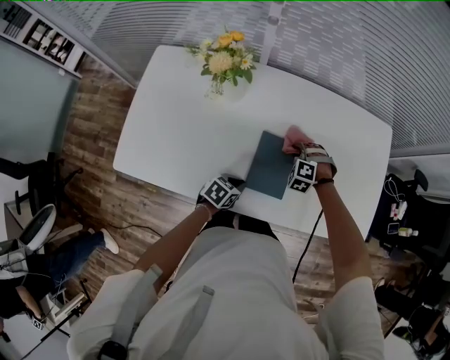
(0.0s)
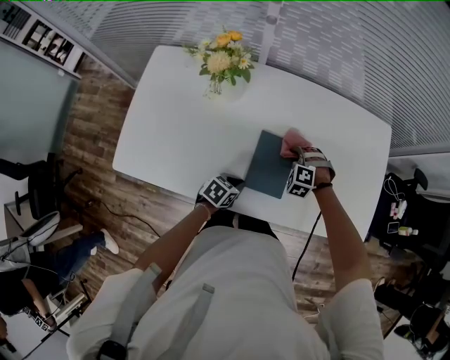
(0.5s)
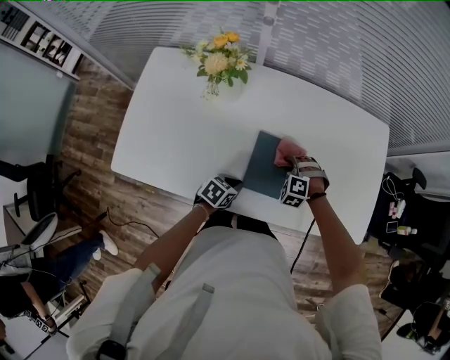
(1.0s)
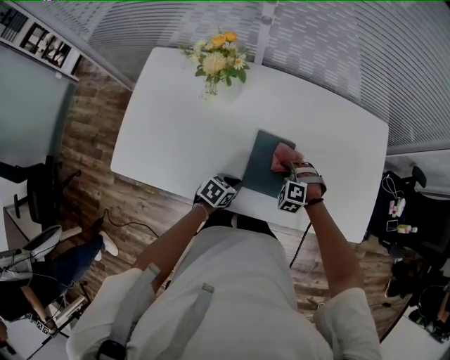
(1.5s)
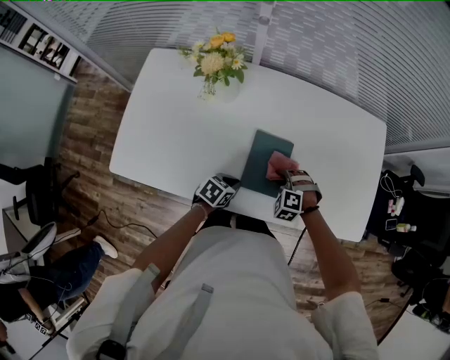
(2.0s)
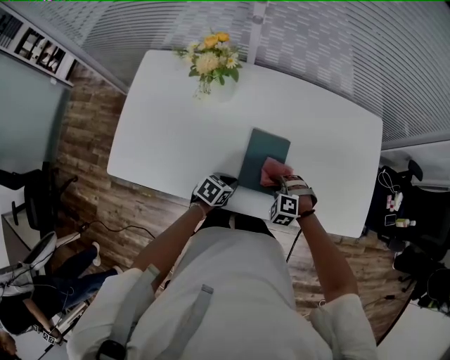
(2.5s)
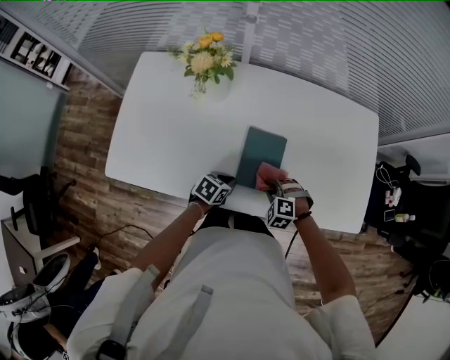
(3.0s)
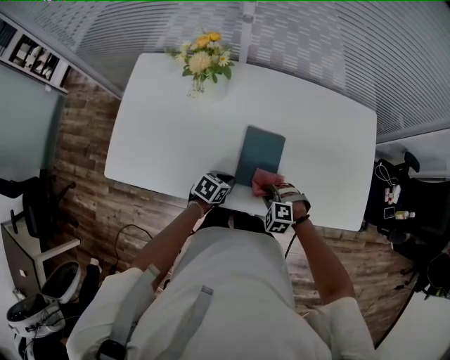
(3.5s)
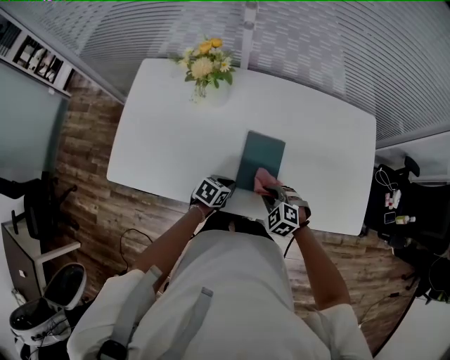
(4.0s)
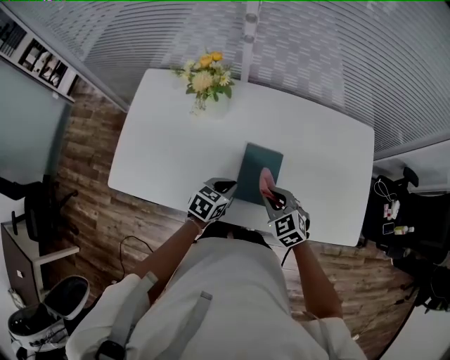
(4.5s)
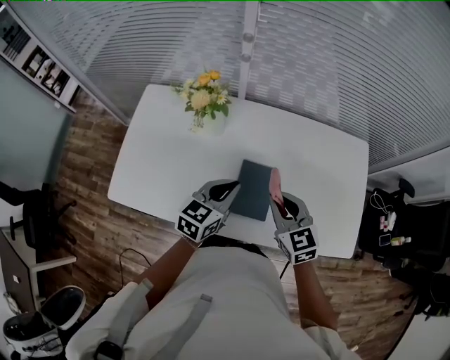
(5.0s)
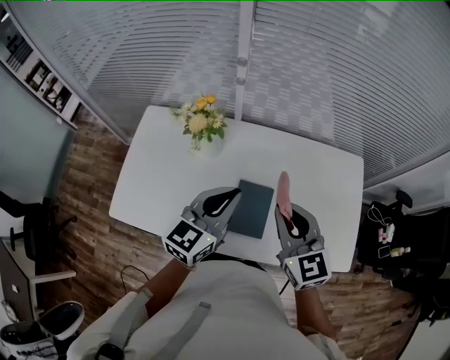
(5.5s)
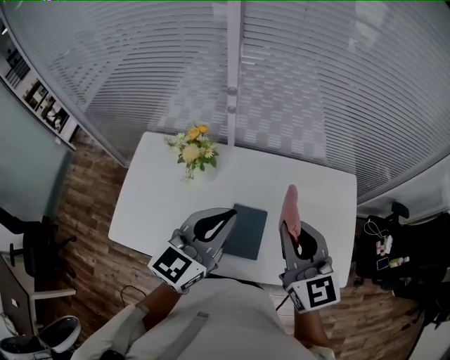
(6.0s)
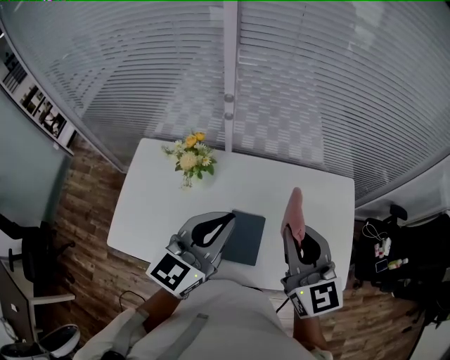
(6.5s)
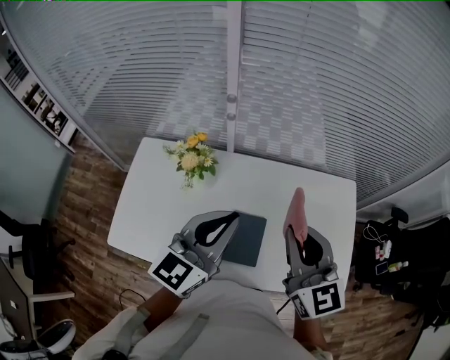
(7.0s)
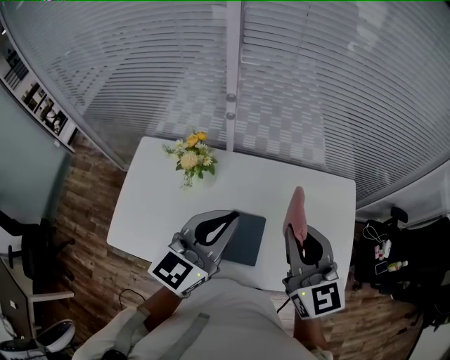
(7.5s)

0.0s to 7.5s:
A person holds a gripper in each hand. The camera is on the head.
0.0s to 2.0s: The right gripper is displaced backward by approximately 10 cm.
2.0s to 4.0s: The right gripper shifts roughly 5 cm backward, and turns by some 20 degrees.
4.0s to 5.5s: The grippers both shift upward by approximately 35 cm. The right gripper points its fingers roughly 40 degrees further upward. The left gripper tilts its fingers approximately 40 degrees upward.
5.5s to 7.5s: The two grippers go roughly 10 cm upward.

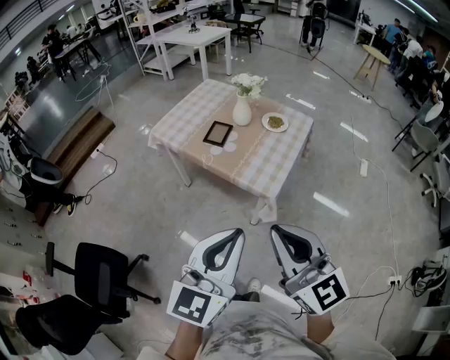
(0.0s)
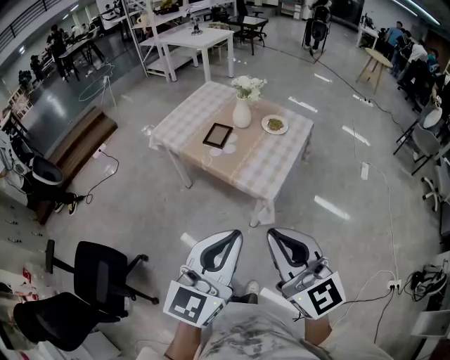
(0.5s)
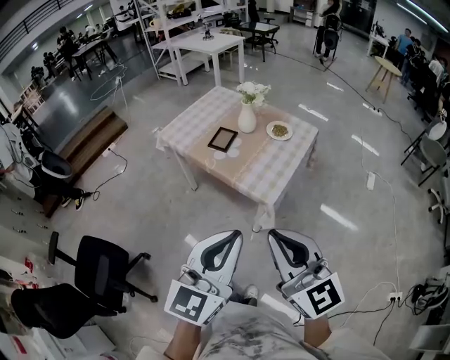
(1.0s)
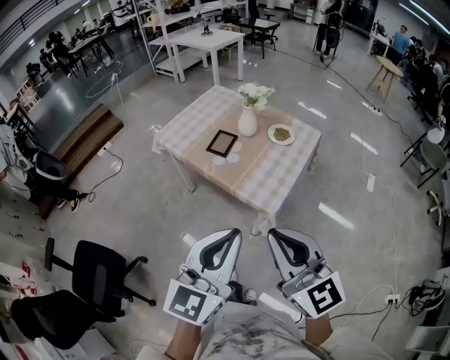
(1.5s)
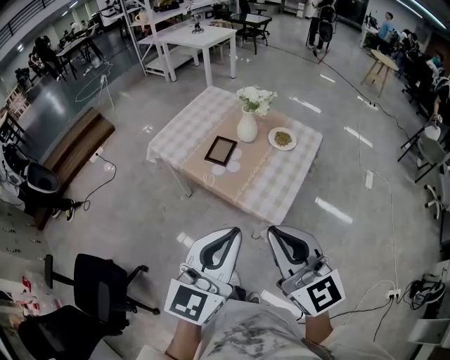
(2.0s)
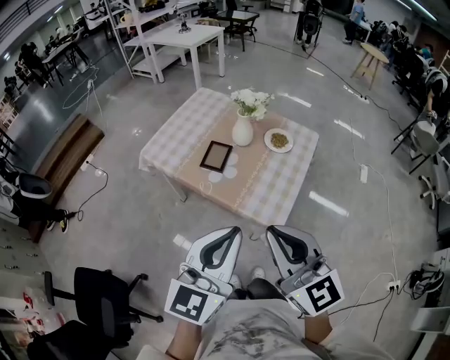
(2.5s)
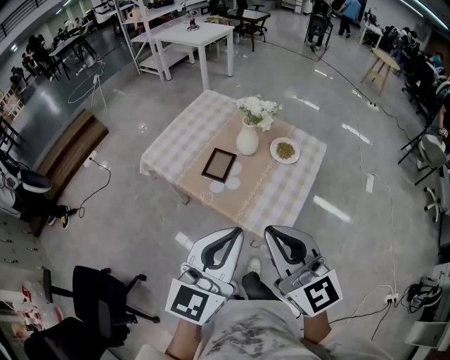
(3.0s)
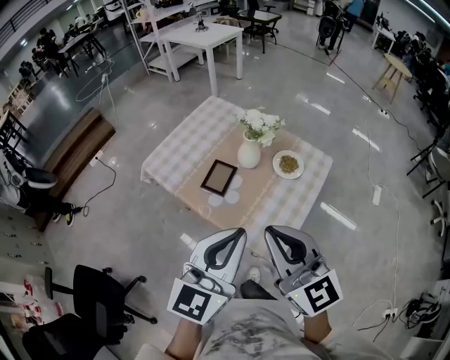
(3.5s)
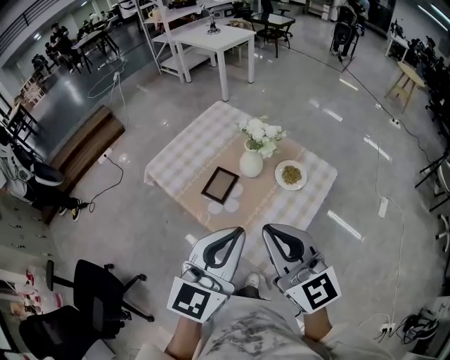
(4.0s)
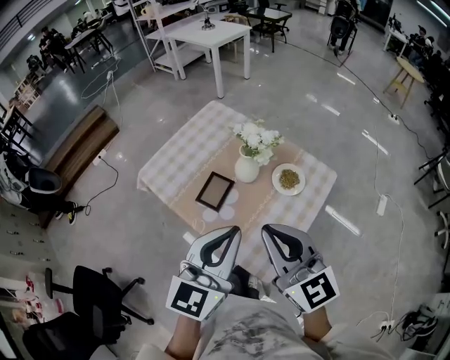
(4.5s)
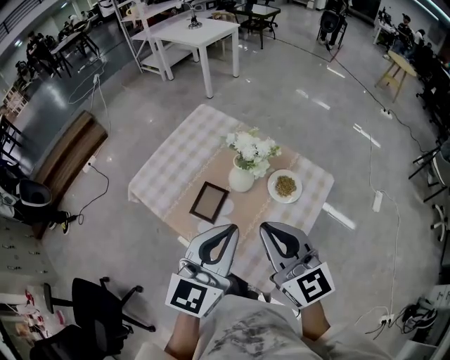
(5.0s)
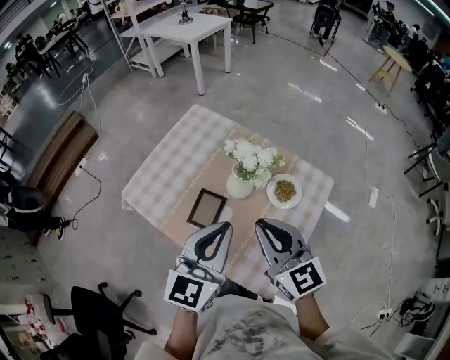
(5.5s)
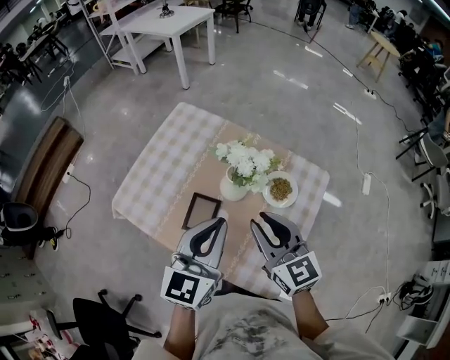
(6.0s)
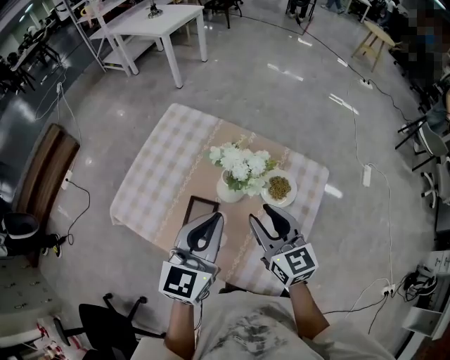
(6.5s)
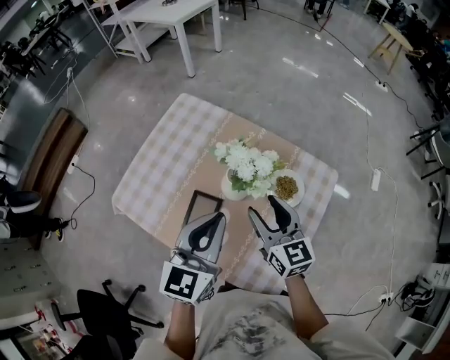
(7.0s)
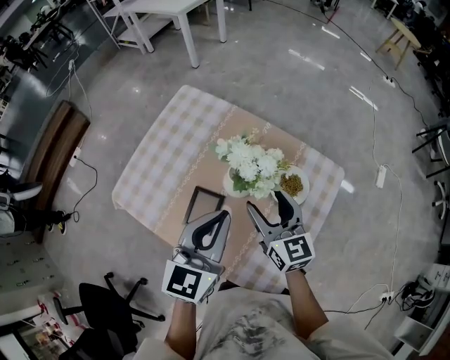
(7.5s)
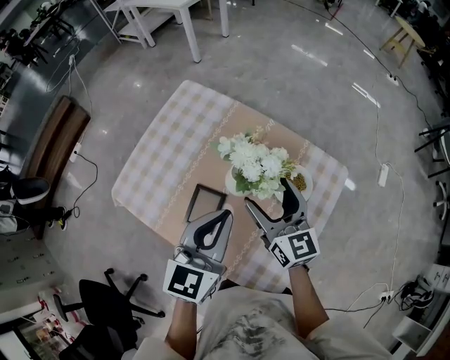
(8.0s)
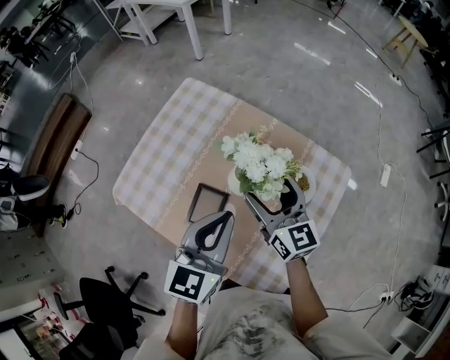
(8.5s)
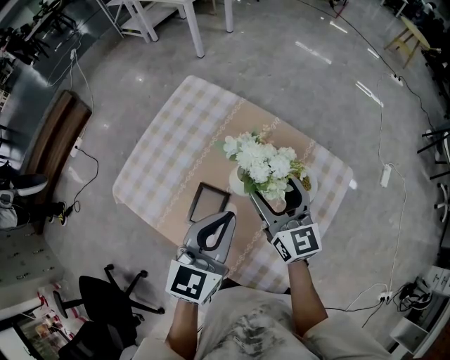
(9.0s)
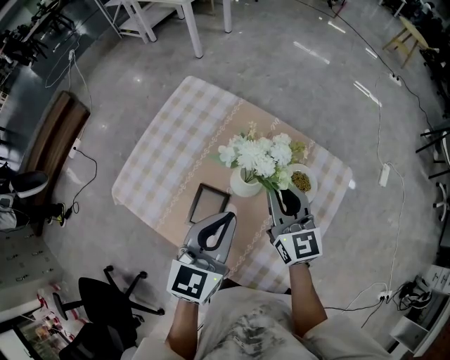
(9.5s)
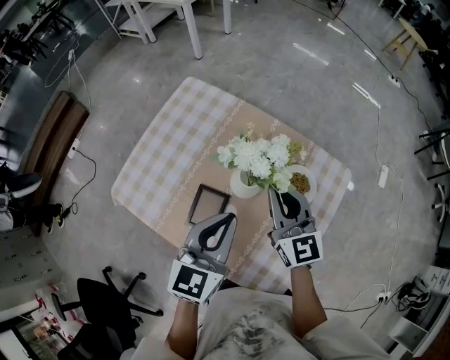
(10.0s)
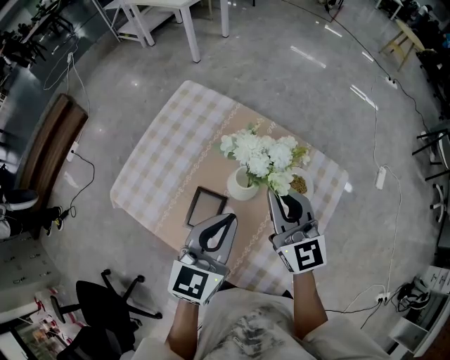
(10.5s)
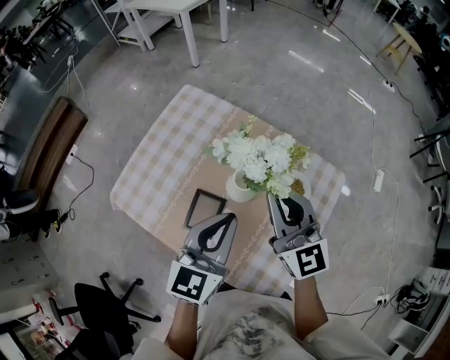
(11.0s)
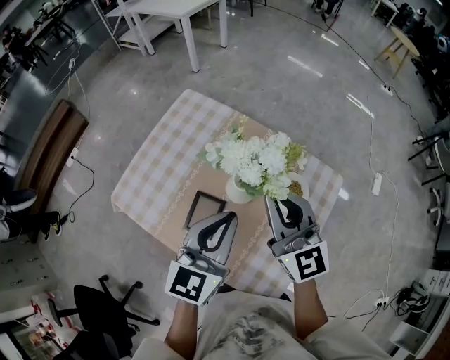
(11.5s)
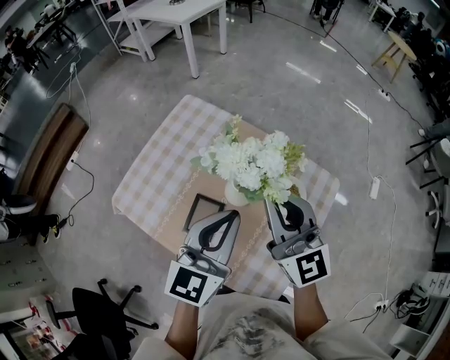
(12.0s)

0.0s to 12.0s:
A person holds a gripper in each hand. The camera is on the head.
0.0s to 2.0s: The two grippers go approximately 15 cm forward.
2.0s to 4.0s: Both grippers move forward, approximately 20 cm.
4.0s to 6.0s: The grippers both shift forward and downward by about 25 cm. The right gripper turns by approximately 20 degrees.
6.0s to 8.0s: The right gripper goes approximately 10 cm forward and downward, and opens; the left gripper shifts by roughly 5 cm.
8.0s to 10.0s: The right gripper closes up.
10.0s to 12.0s: The left gripper moves upward, roughly 5 cm. The right gripper travels upward by some 10 cm.

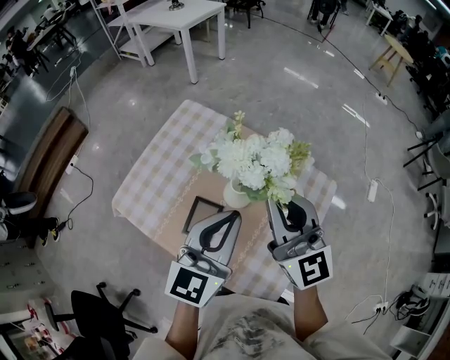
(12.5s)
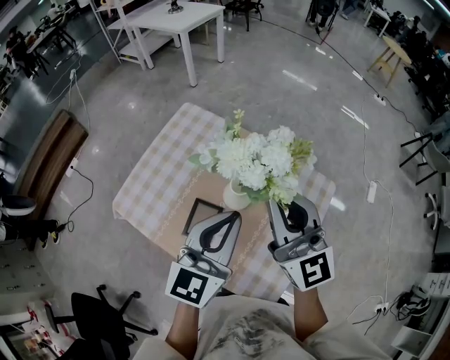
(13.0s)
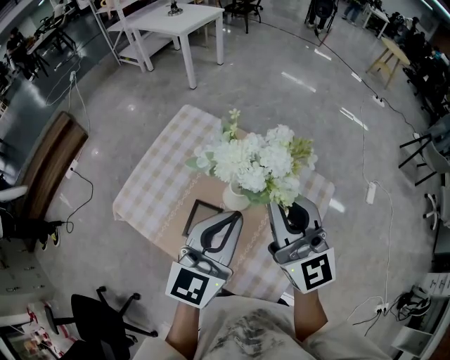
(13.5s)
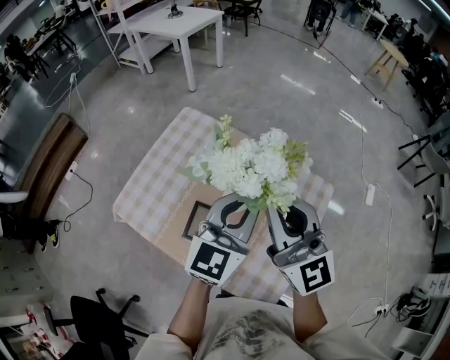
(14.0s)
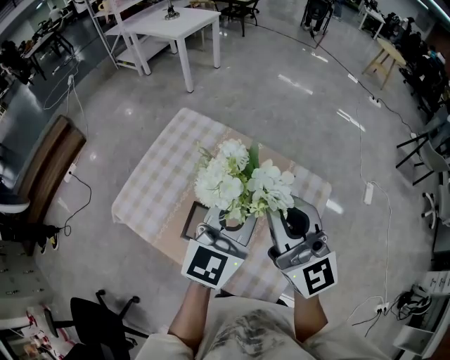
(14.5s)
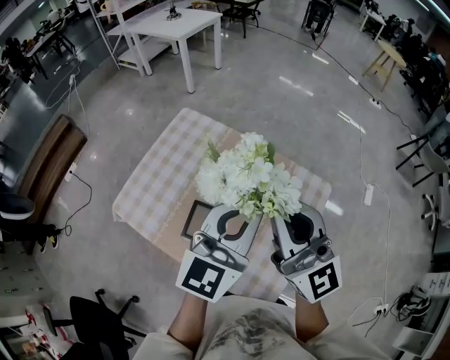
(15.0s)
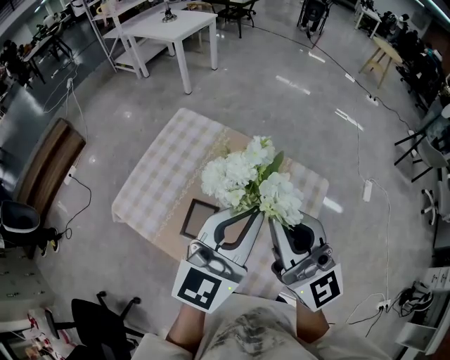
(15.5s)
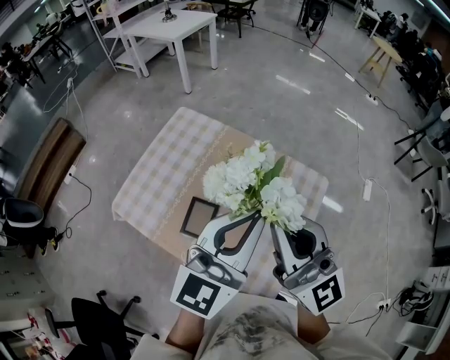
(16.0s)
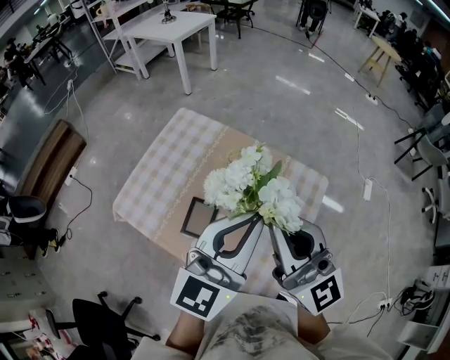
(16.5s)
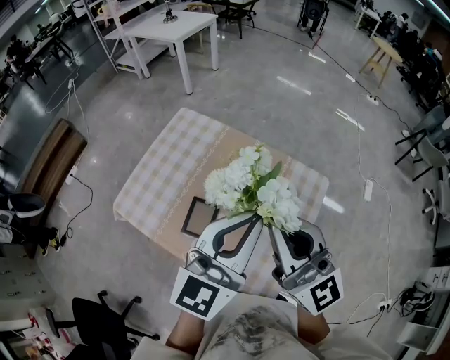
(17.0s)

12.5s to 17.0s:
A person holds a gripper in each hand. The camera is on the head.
12.5s to 14.5s: The right gripper shifts by about 5 cm; the left gripper changes place by about 5 cm.
14.5s to 17.0s: Both grippers move backward, roughly 5 cm.

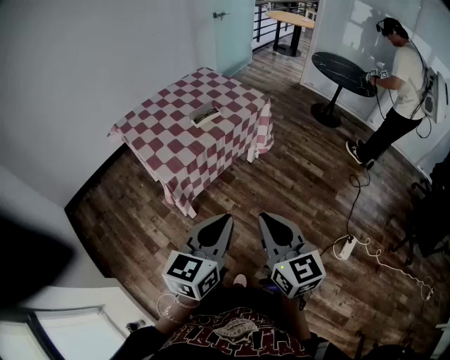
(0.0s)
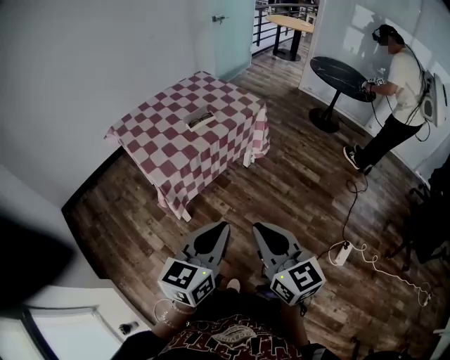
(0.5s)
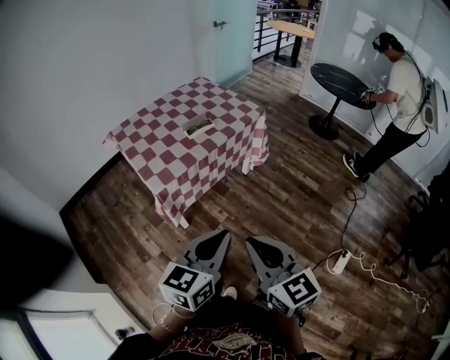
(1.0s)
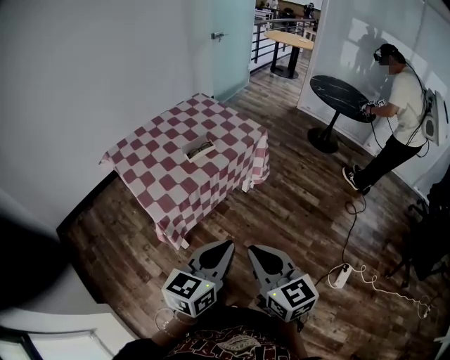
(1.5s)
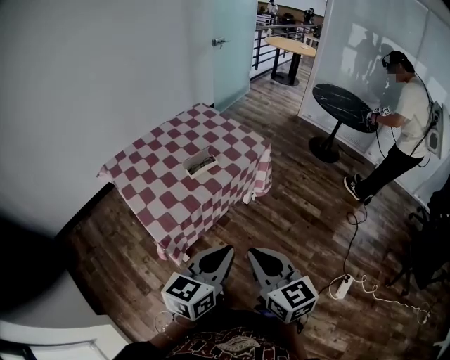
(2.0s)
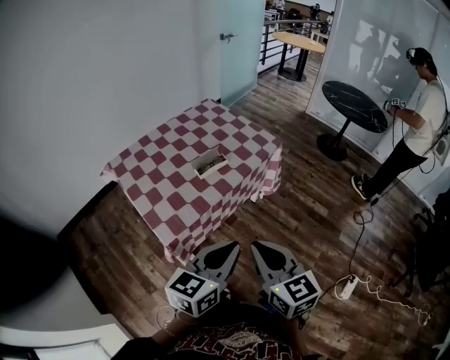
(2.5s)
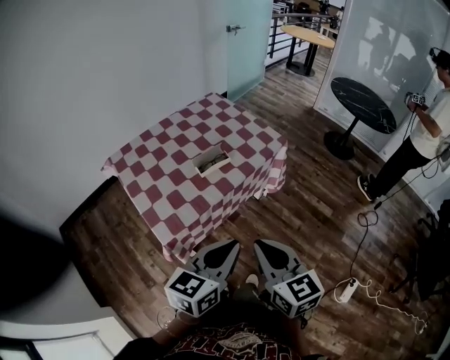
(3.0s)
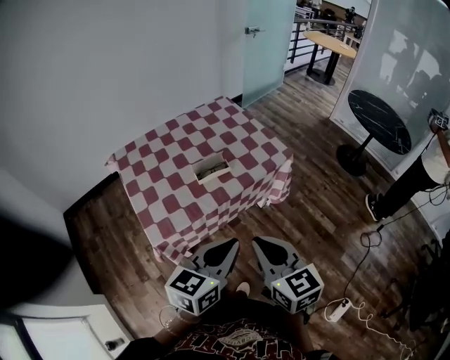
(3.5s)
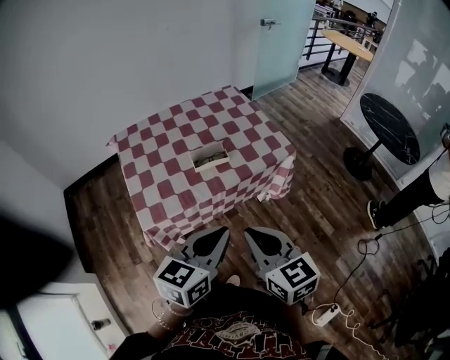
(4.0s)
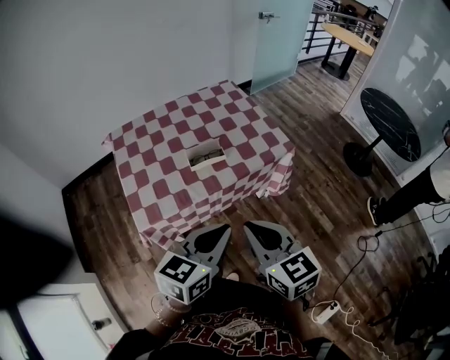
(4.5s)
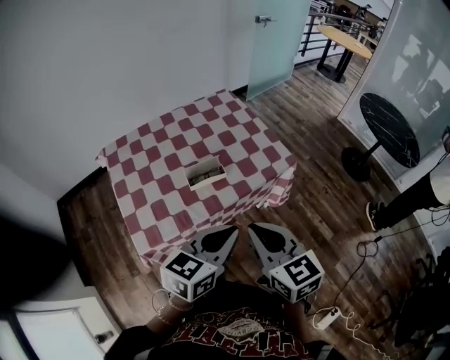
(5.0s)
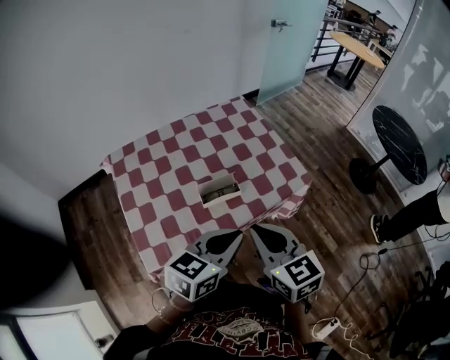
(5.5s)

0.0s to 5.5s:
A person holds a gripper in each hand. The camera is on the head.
0.0s to 2.0s: Both grippers travel together forward, about 15 cm.
2.0s to 3.5s: Both grippers move forward, some 15 cm.
3.5s to 5.5s: Both grippers travel together forward, about 20 cm.
